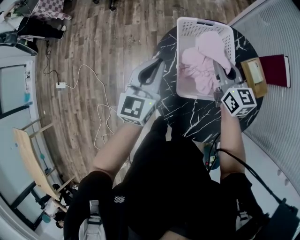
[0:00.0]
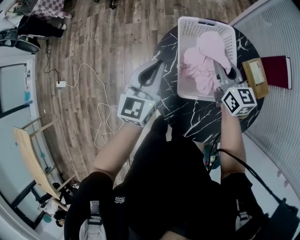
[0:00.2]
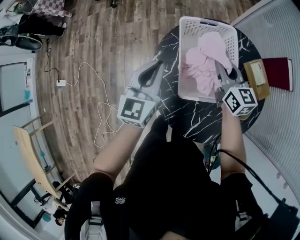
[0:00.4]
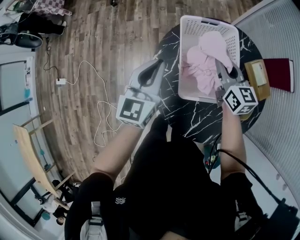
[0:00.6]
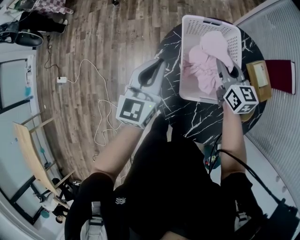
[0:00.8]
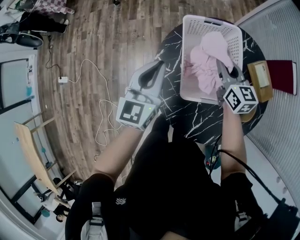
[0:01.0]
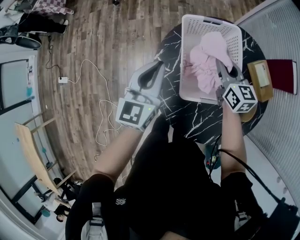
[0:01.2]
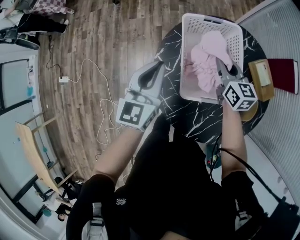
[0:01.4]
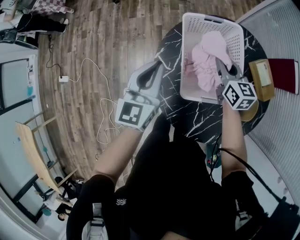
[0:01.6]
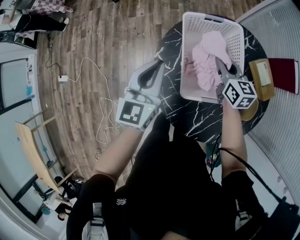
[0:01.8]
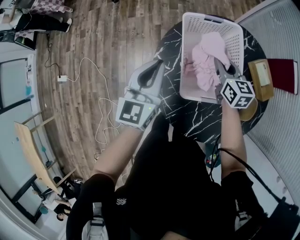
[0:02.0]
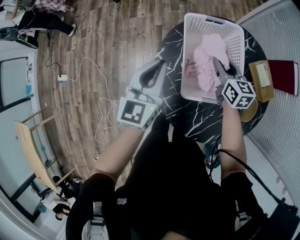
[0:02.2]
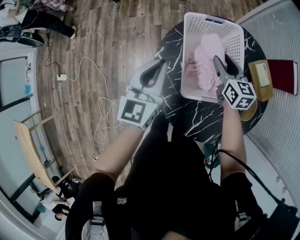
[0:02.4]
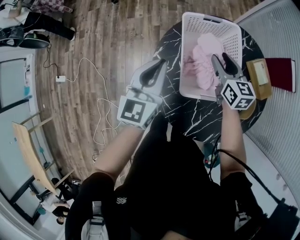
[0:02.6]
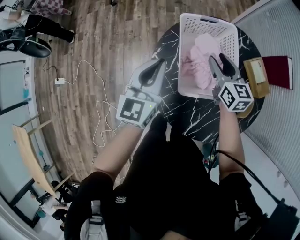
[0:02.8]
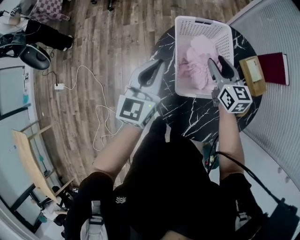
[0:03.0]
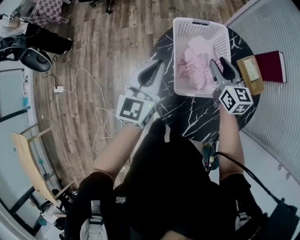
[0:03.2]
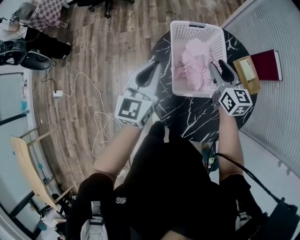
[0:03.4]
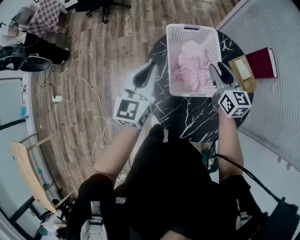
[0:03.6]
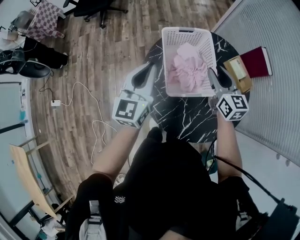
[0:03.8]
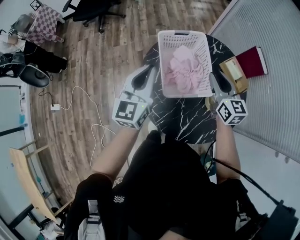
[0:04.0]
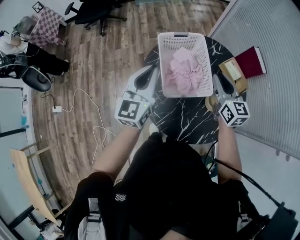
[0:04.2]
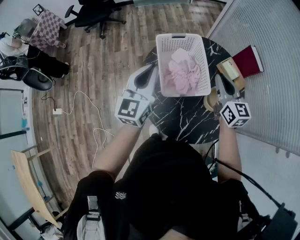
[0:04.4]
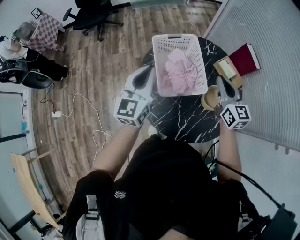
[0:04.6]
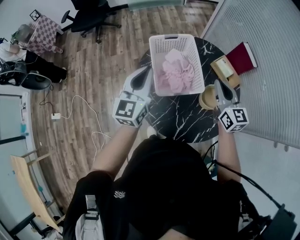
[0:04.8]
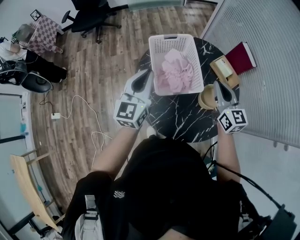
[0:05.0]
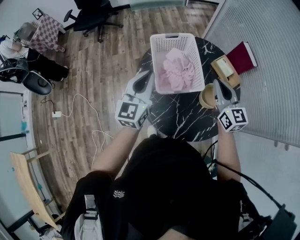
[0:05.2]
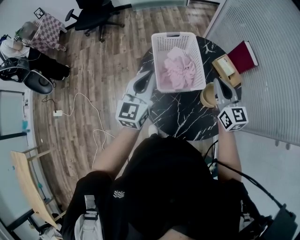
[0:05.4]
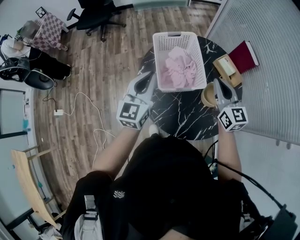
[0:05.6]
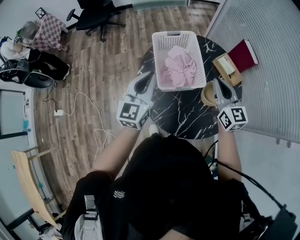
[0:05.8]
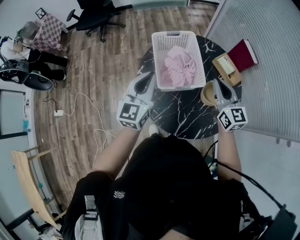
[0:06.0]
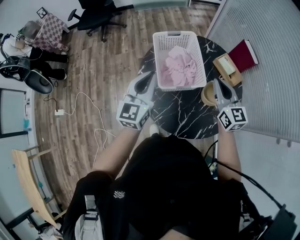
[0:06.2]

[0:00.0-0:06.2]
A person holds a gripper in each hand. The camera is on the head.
0:00.0 to 0:01.6: The right gripper moves downward, approximately 5 cm.
0:01.6 to 0:03.2: The right gripper is displaced upward by about 5 cm.
0:03.2 to 0:04.6: The left gripper moves upward, some 10 cm. Meanwhile the right gripper heads upward, to the right and backward, covering roughly 20 cm, and closes its fingers.
0:04.6 to 0:06.2: Both grippers move backward, roughly 5 cm.

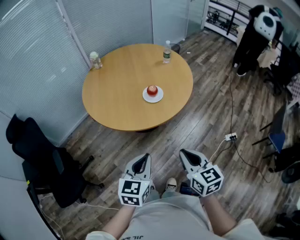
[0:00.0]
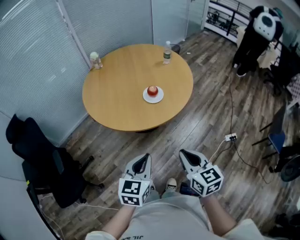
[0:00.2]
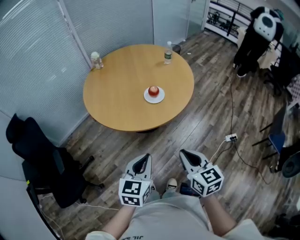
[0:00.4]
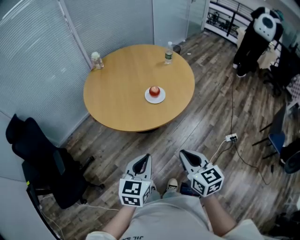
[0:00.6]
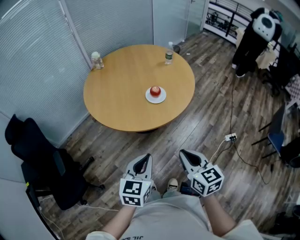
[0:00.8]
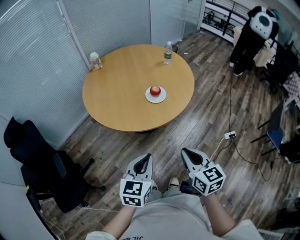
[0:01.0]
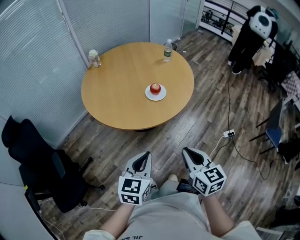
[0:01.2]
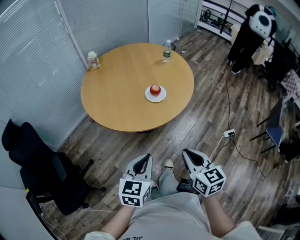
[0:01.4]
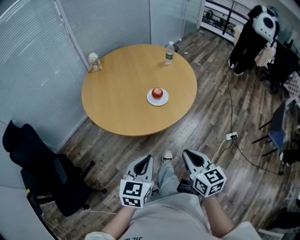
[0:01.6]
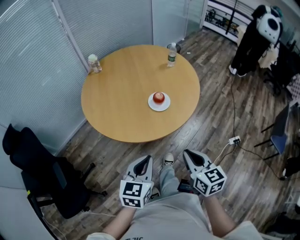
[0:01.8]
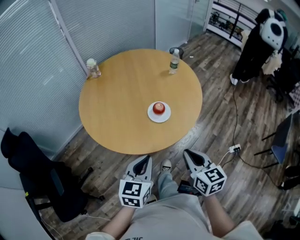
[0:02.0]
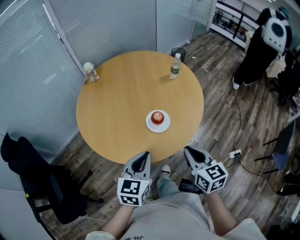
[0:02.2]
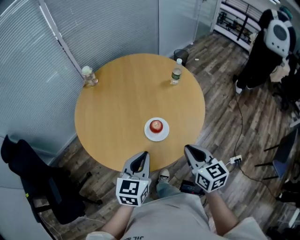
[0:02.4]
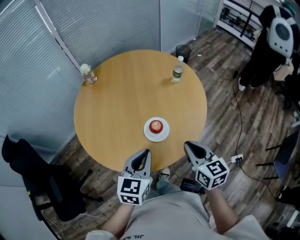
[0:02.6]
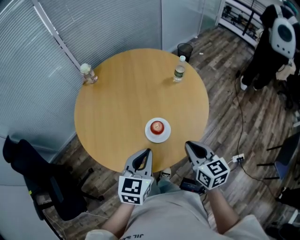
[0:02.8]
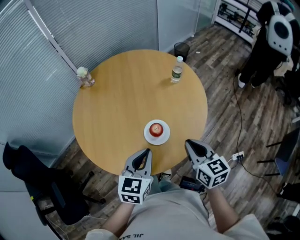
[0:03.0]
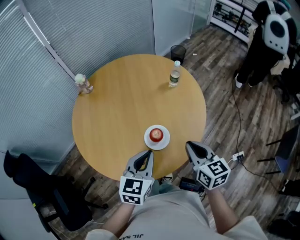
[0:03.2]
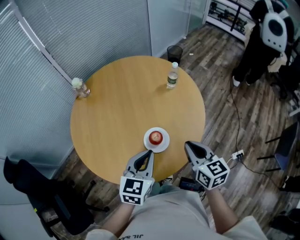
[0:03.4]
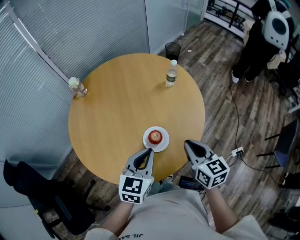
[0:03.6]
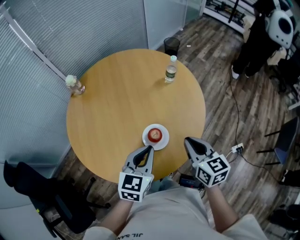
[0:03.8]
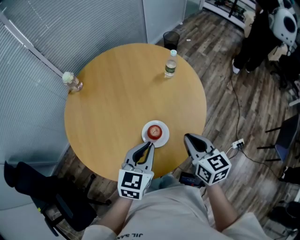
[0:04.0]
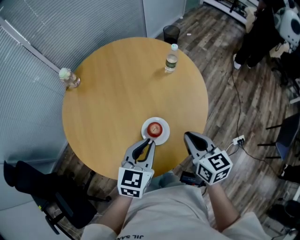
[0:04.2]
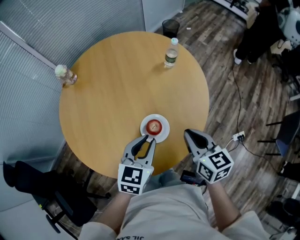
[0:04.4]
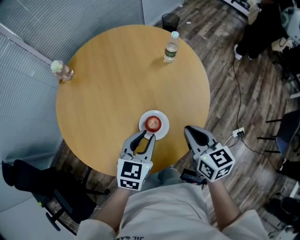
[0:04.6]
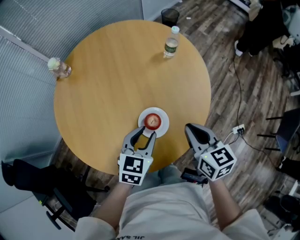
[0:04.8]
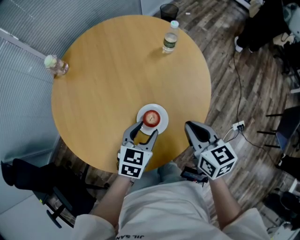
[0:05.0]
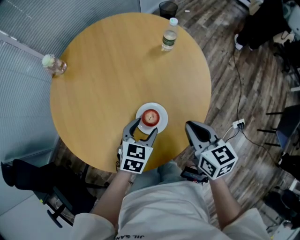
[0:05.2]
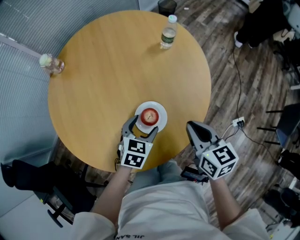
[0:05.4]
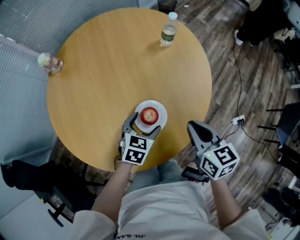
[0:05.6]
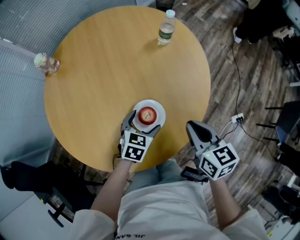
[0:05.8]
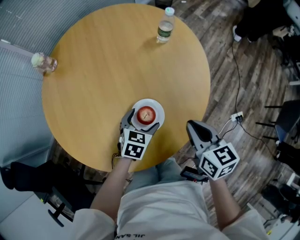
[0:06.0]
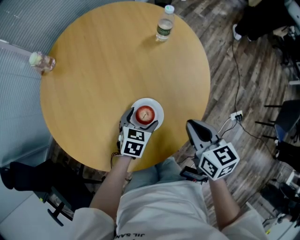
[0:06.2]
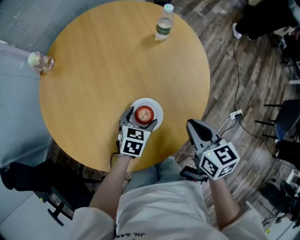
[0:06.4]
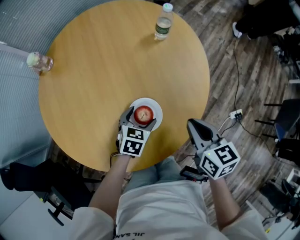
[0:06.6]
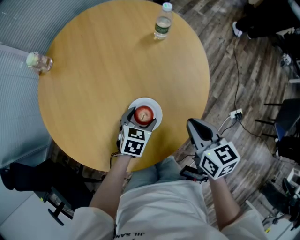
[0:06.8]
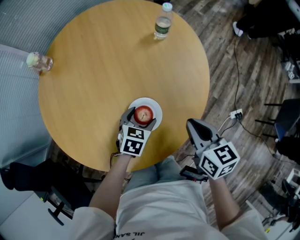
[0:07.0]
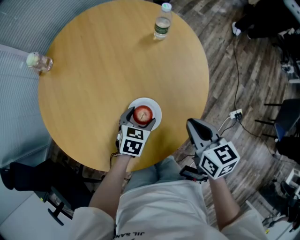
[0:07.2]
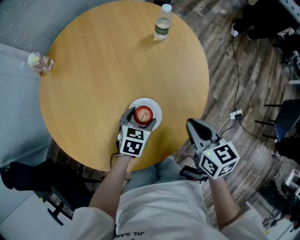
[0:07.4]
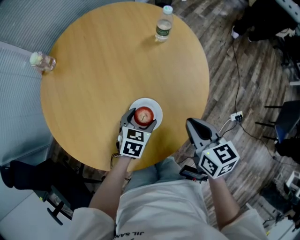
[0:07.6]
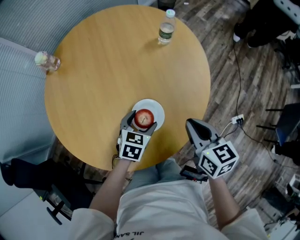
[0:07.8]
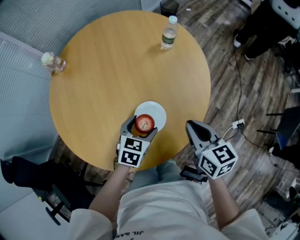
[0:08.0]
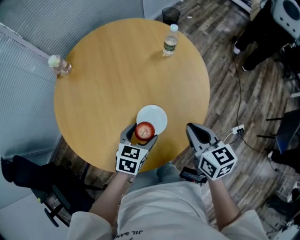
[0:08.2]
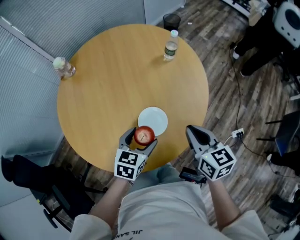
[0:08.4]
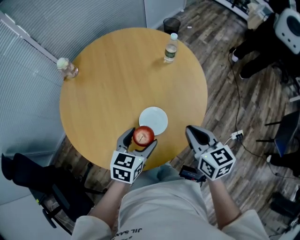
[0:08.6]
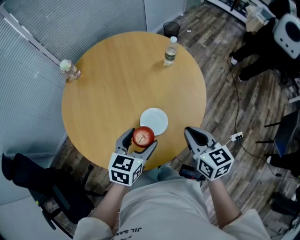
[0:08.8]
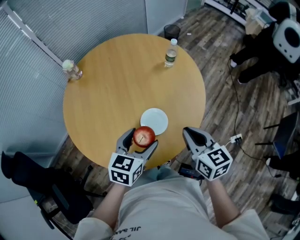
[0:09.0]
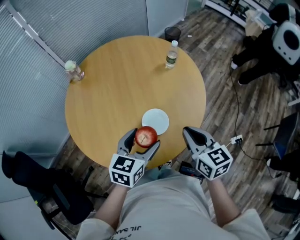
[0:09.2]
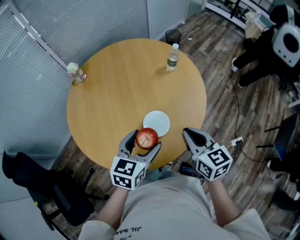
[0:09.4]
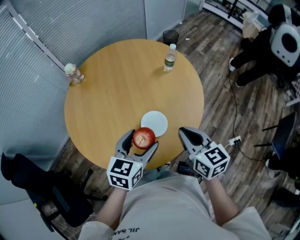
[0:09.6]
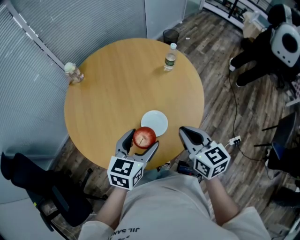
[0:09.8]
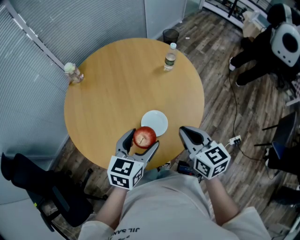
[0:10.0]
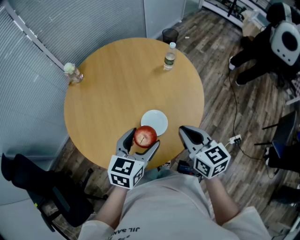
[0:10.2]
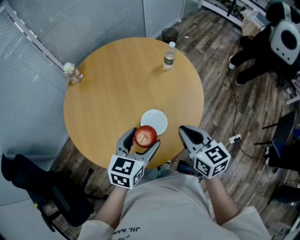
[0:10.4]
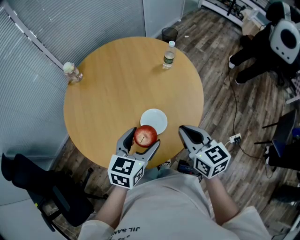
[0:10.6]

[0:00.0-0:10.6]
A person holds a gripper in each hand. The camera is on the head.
0:00.0 to 0:01.6: The left gripper changes place by roughly 5 cm.
0:01.6 to 0:03.0: Both grippers move forward, roughly 30 cm.
0:03.0 to 0:04.6: The right gripper is displaced forward by some 5 cm. The left gripper goes some 10 cm forward and downward.
0:04.6 to 0:06.0: The right gripper ends up roughly 5 cm from where it was, while the left gripper goes approximately 15 cm downward, and opens its fingers.
0:06.0 to 0:07.6: There are only small adjustments of the grippers.
0:07.6 to 0:09.0: The left gripper heads upward and backward, covering roughly 20 cm, and swivels roughly 20 degrees. Meanwhile the right gripper moves upward and backward, roughly 10 cm.
0:09.0 to 0:10.6: The grippers move only a little.

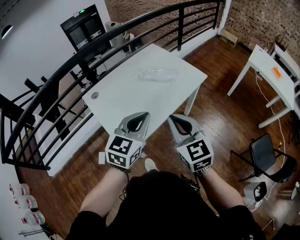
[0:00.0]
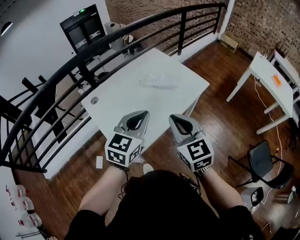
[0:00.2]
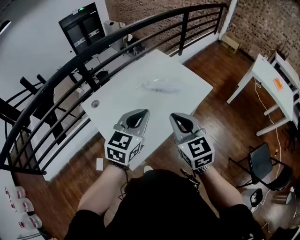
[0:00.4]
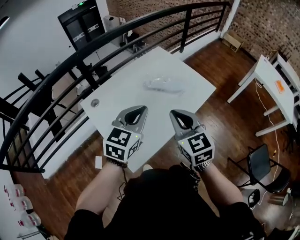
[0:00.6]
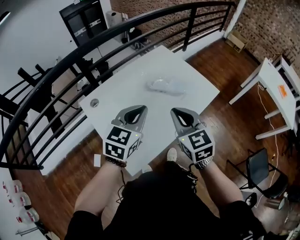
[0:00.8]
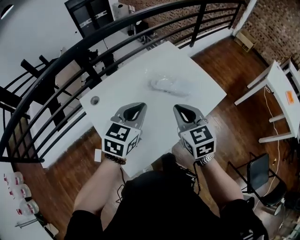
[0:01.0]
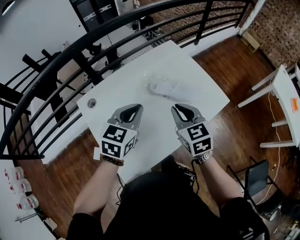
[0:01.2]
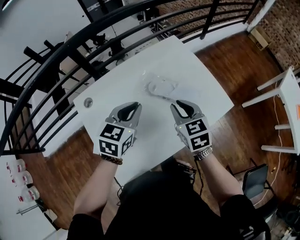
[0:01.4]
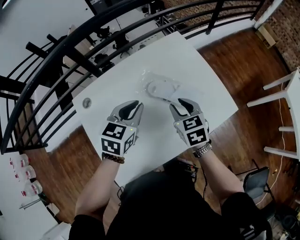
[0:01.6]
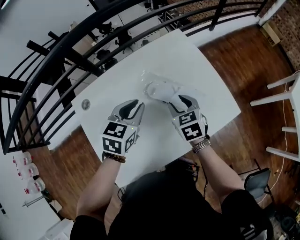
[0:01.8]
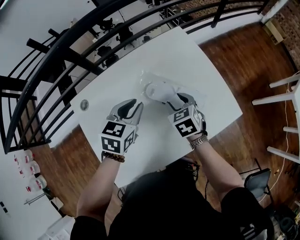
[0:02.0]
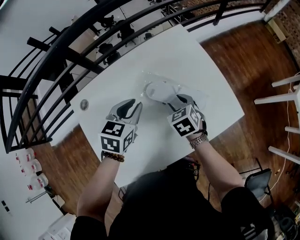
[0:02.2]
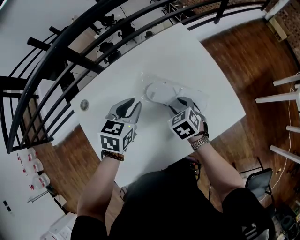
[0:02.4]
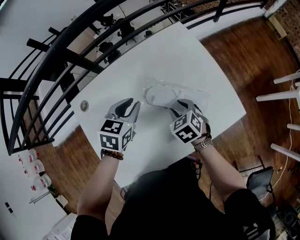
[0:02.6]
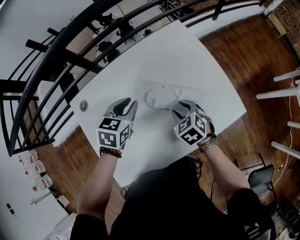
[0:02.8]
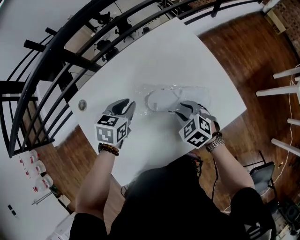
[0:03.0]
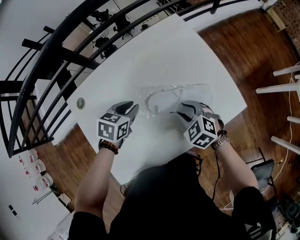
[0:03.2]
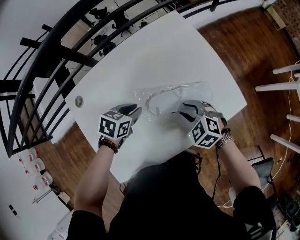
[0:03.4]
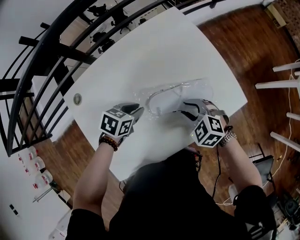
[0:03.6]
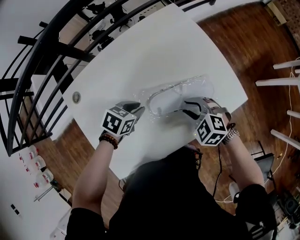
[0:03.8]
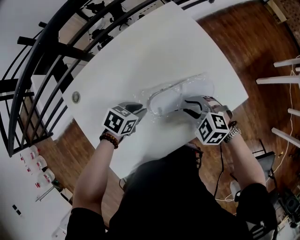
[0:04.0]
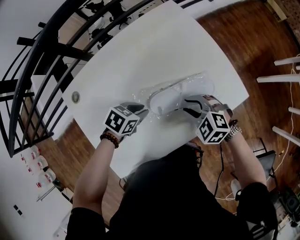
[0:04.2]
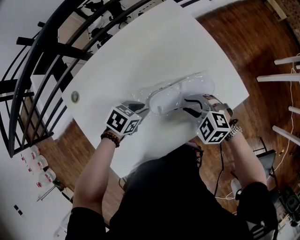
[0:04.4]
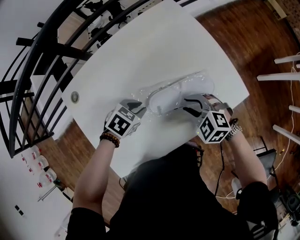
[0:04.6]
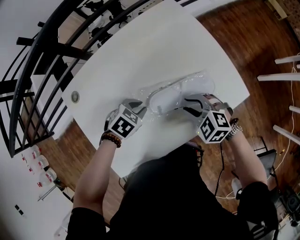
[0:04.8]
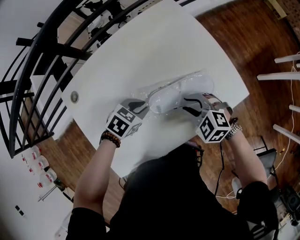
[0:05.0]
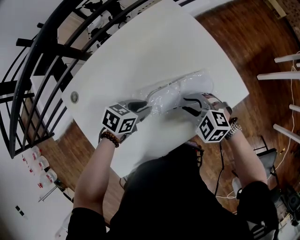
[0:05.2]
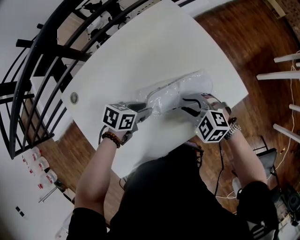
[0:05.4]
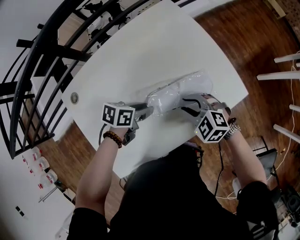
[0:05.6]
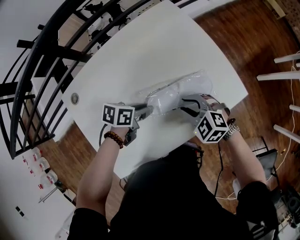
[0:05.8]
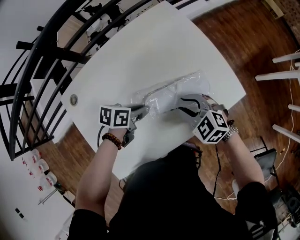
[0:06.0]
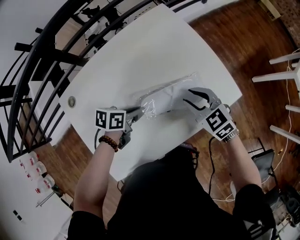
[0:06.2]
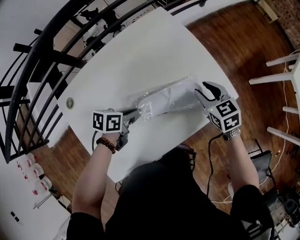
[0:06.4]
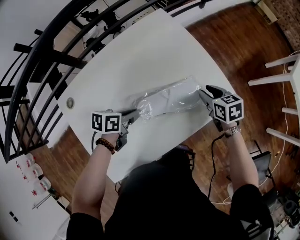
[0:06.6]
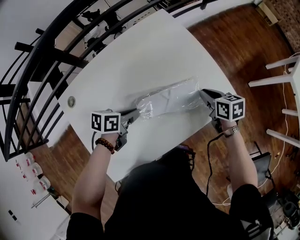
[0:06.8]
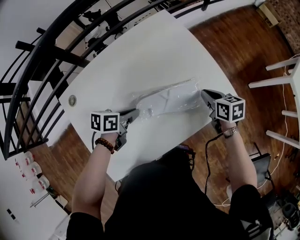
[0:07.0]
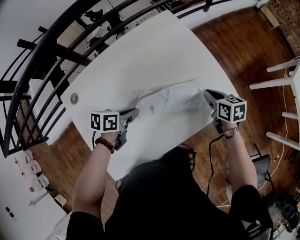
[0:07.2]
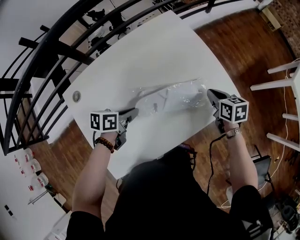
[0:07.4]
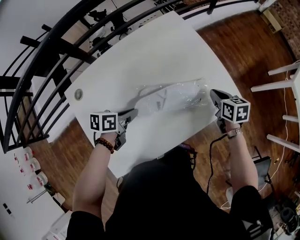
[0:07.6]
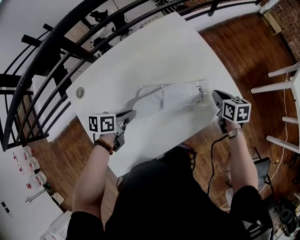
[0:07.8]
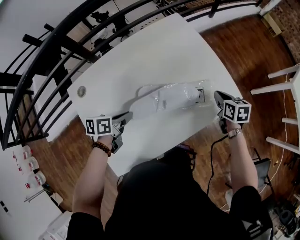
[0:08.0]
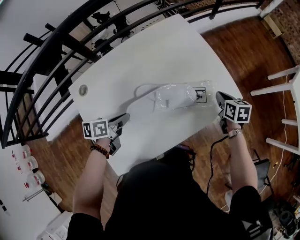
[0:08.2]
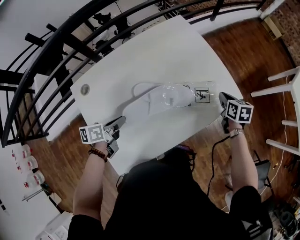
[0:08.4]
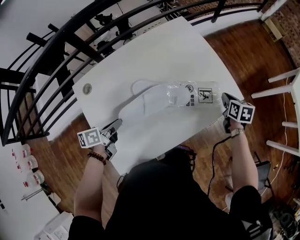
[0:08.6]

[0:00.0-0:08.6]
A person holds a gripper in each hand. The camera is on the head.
0:00.0 to 0:01.4: The two grippers go some 30 cm forward. The right gripper rotates approximately 20 degrees, while the left gripper rotates about 20 degrees.
0:01.4 to 0:02.8: The left gripper travels downward and forward by roughly 10 cm, while the right gripper travels downward by some 15 cm, rotates roughly 30 degrees, and opens its fingers.
0:02.8 to 0:04.4: The right gripper shifts by some 5 cm, and swivels some 30 degrees. The left gripper moves downward, approximately 10 cm, and changes its angle by approximately 40 degrees.
0:04.4 to 0:05.8: The left gripper swivels about 30 degrees.
0:05.8 to 0:07.2: The right gripper moves some 15 cm, twists roughly 60 degrees clockwise, seen from behind, and closes up.
0:07.2 to 0:08.6: The right gripper heads to the right, covering approximately 5 cm. The left gripper travels to the left and backward by approximately 15 cm, and turns by approximately 20 degrees.
